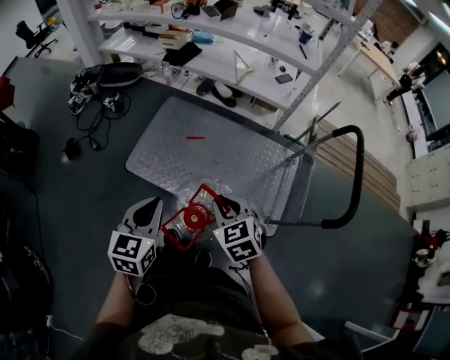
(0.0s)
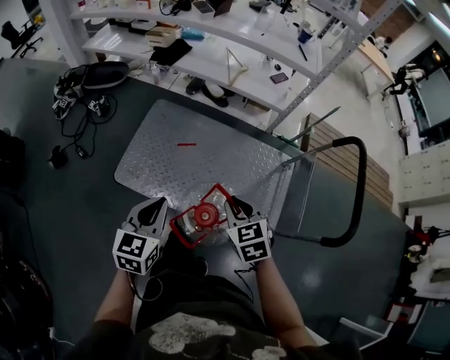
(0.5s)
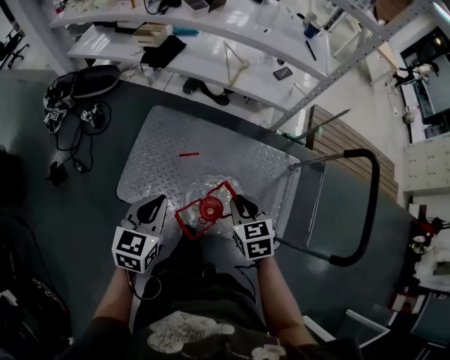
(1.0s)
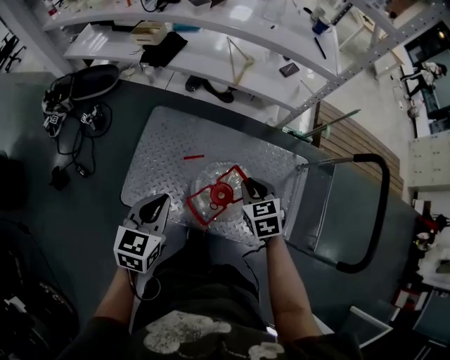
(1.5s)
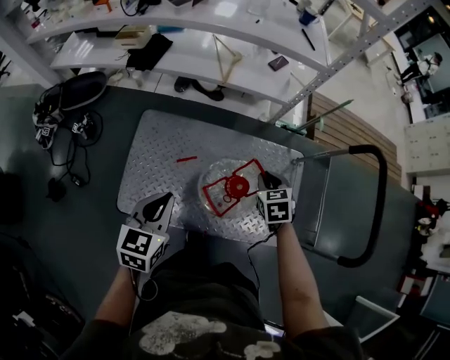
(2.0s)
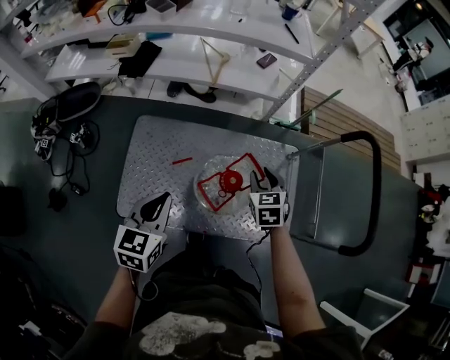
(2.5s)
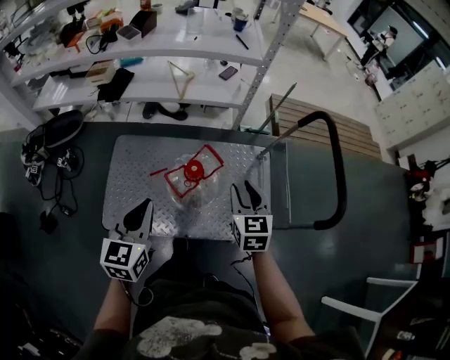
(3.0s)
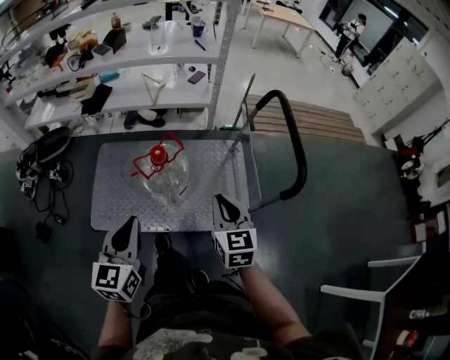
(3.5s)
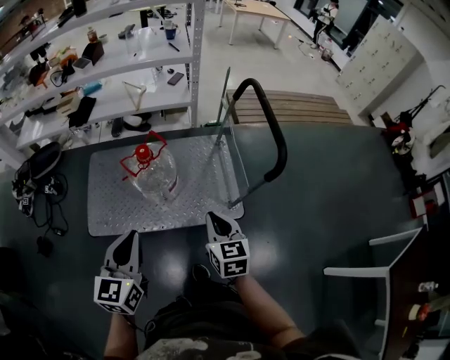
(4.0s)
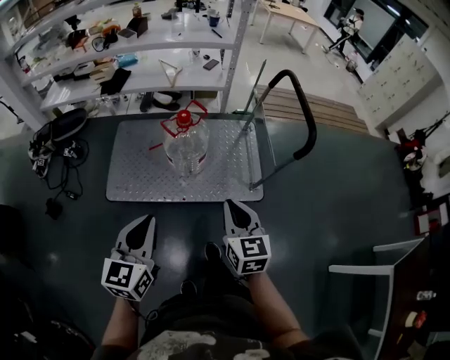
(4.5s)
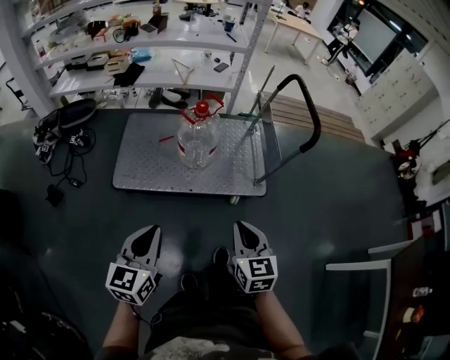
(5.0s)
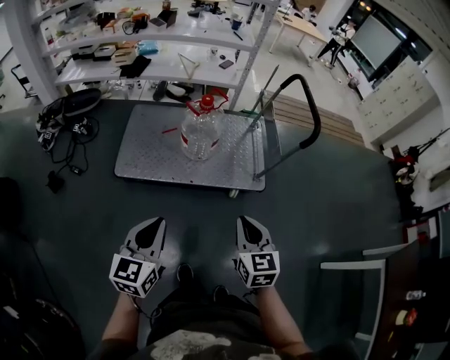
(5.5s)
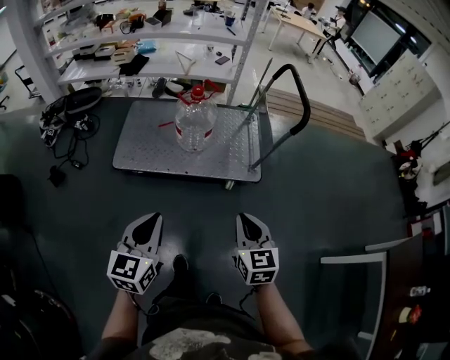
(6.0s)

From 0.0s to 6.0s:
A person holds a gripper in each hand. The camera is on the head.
From 0.0s to 2.0s: The left gripper shifts by approximately 35 cm; the right gripper ends up some 40 cm from where it was, and rotates some 30 degrees.
From 2.0s to 4.0s: The right gripper heads backward and to the right, covering some 40 cm, swivels approximately 30 degrees, and opens, then closes again, while the left gripper heads backward, to the right and upward, covering about 40 cm.
From 4.0s to 6.0s: Both grippers travel together backward, roughly 35 cm.

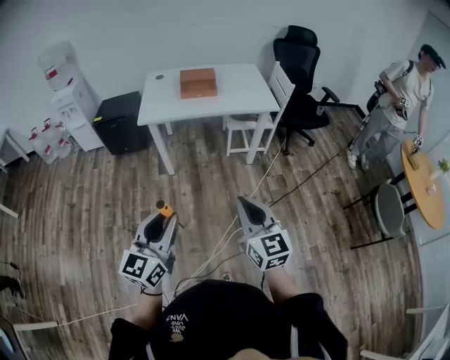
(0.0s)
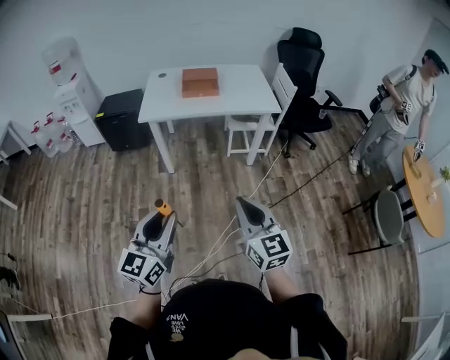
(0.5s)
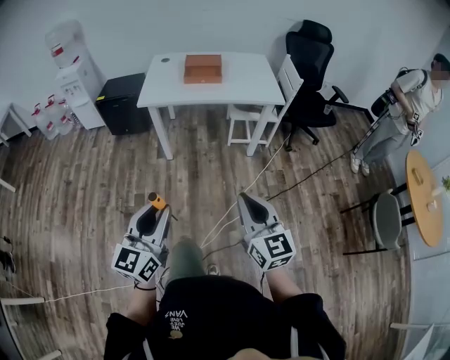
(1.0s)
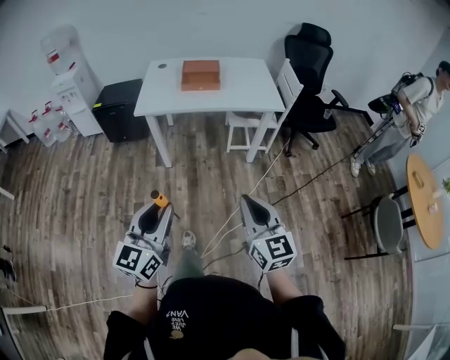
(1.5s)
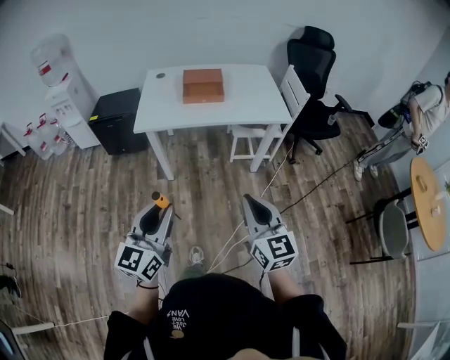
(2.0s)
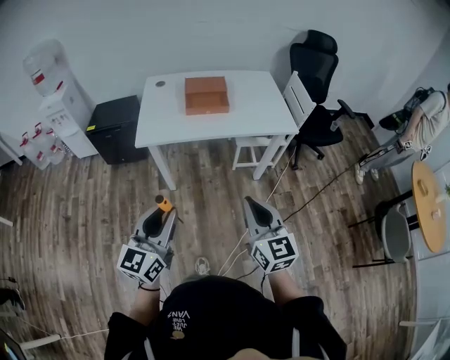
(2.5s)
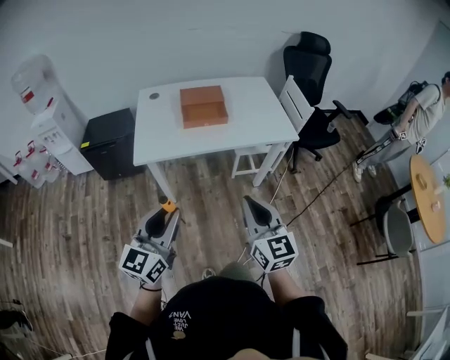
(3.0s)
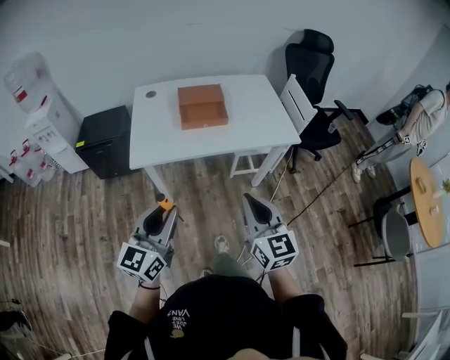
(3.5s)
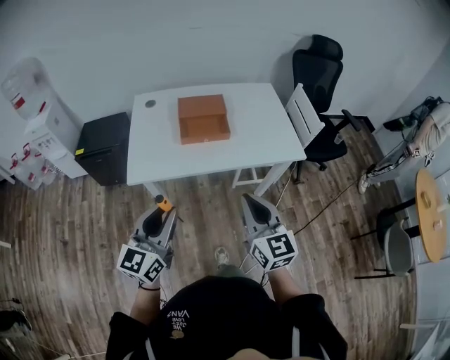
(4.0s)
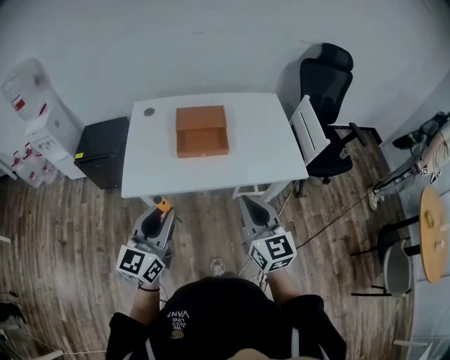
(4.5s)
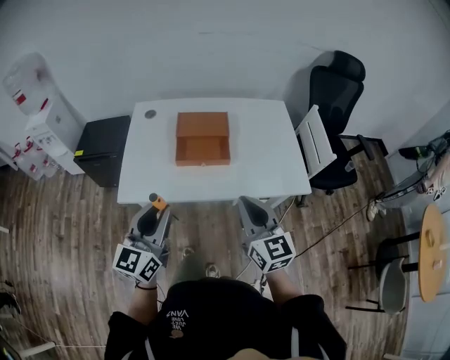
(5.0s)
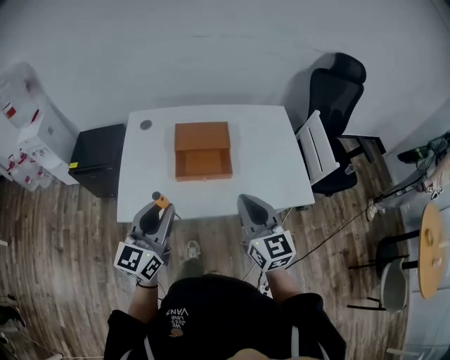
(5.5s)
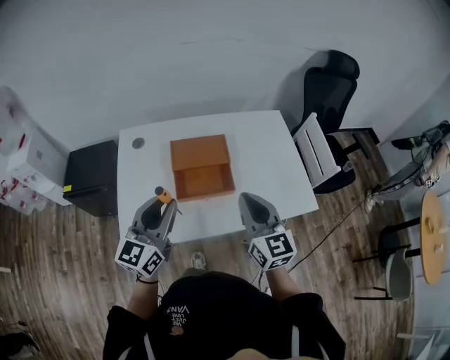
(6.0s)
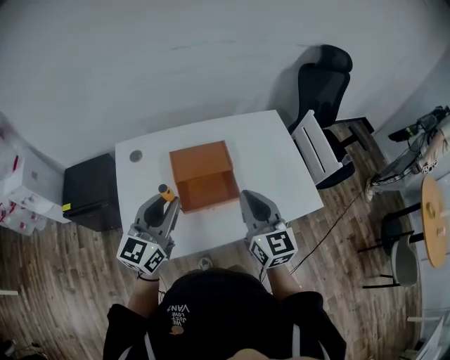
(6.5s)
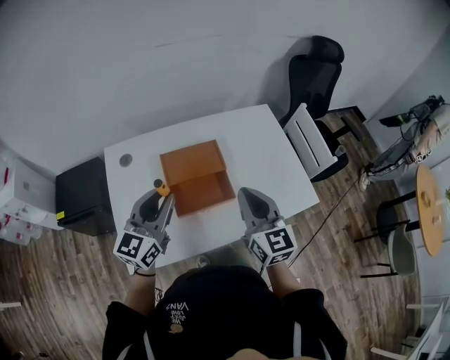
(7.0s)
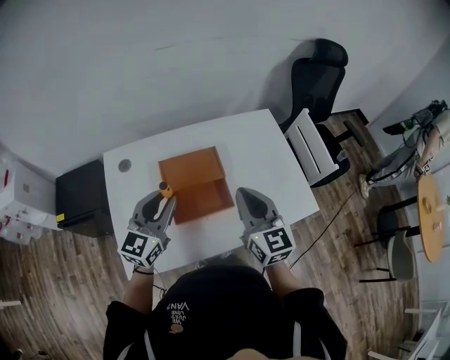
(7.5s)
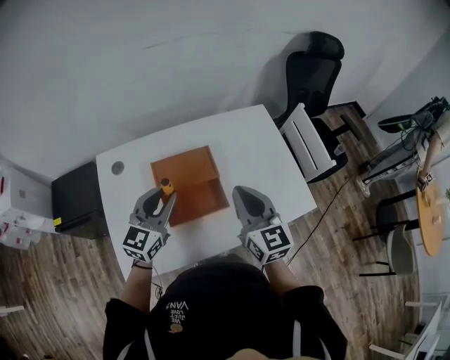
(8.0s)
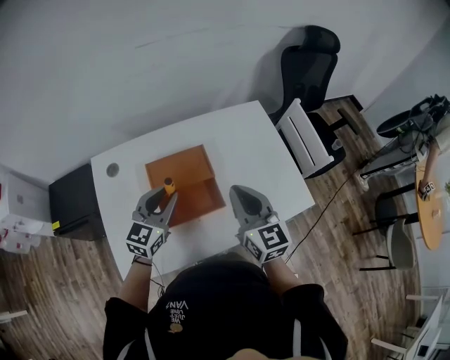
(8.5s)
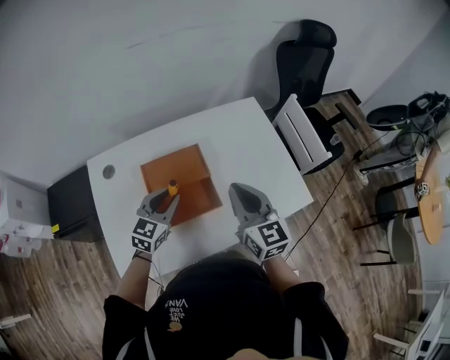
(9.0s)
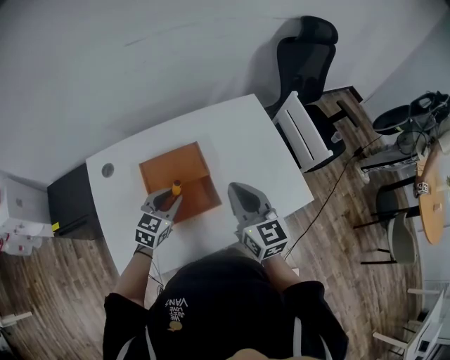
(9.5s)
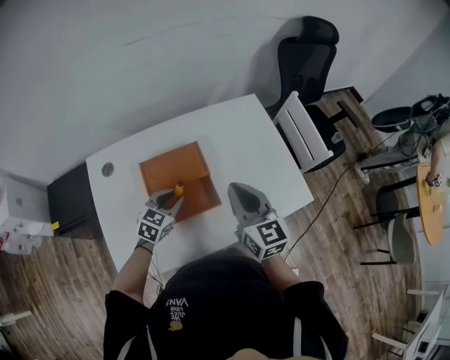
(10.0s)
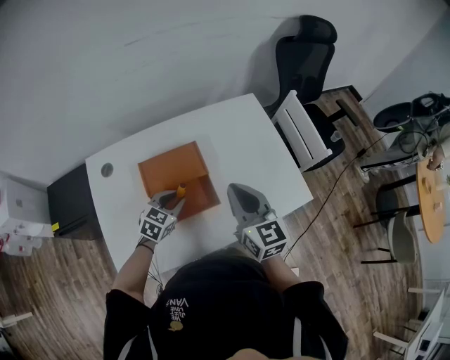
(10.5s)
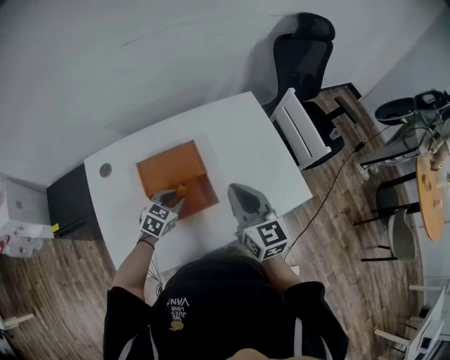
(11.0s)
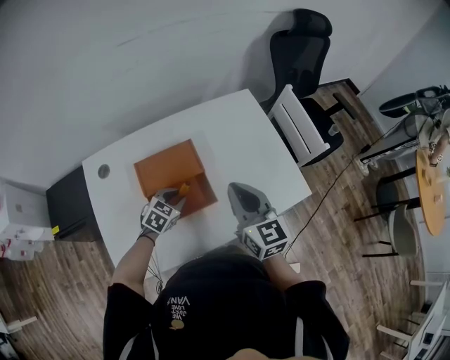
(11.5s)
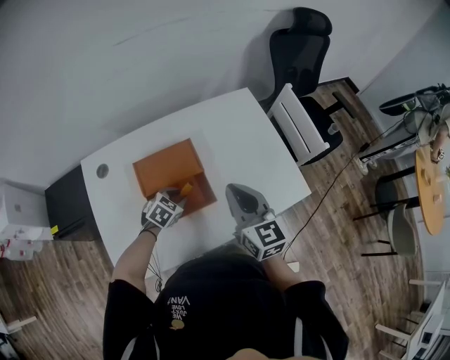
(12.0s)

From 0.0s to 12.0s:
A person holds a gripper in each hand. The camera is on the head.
From 0.0s to 2.0s: Both grippers move forward, about 15 cm.
From 2.0s to 4.0s: Both grippers move forward, about 30 cm.
From 4.0s to 6.0s: The two grippers go approximately 30 cm forward.
From 6.0s to 8.0s: Both grippers move forward, approximately 15 cm.
From 8.0s to 10.0s: The left gripper goes roughly 15 cm downward, and changes its angle by some 30 degrees.
From 10.0s to 12.0s: The left gripper moves downward, roughly 10 cm, and swivels about 20 degrees.

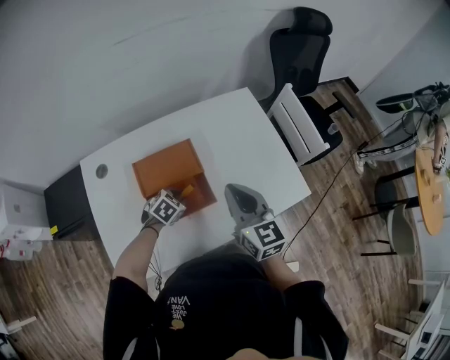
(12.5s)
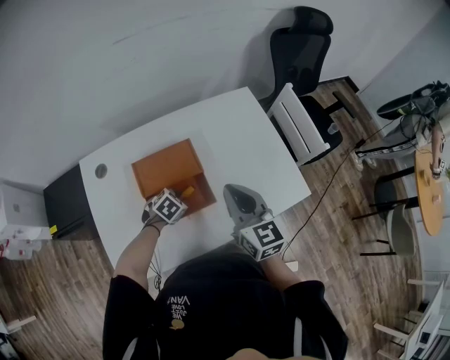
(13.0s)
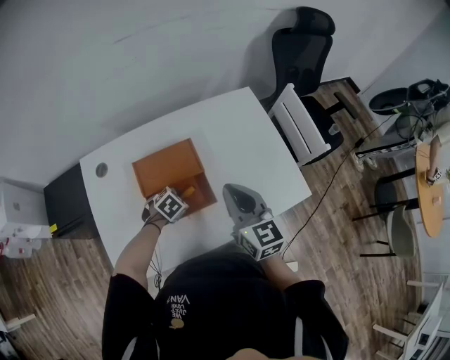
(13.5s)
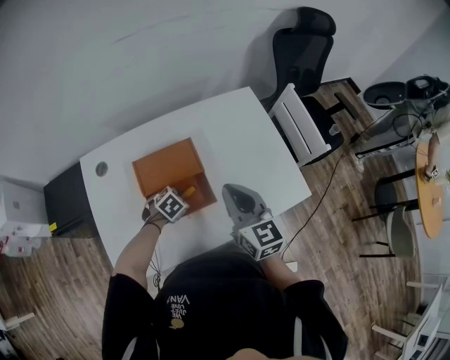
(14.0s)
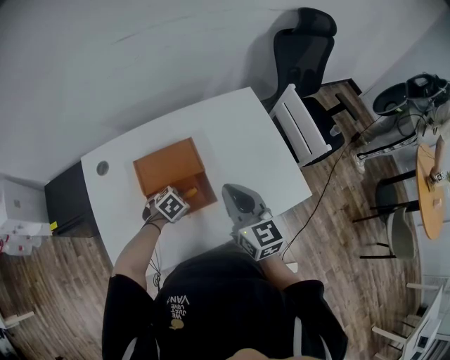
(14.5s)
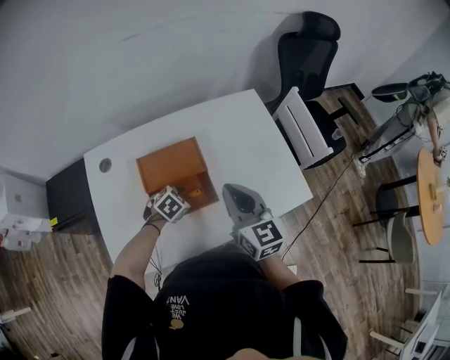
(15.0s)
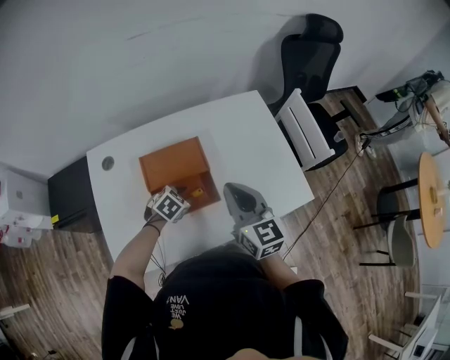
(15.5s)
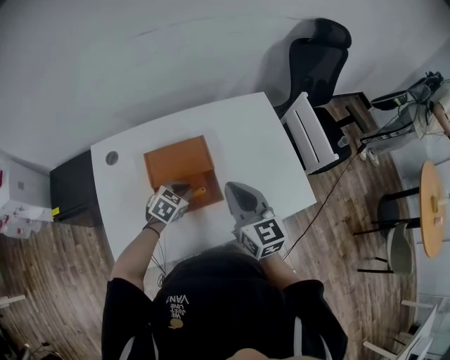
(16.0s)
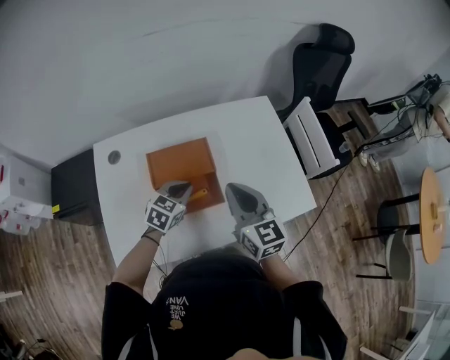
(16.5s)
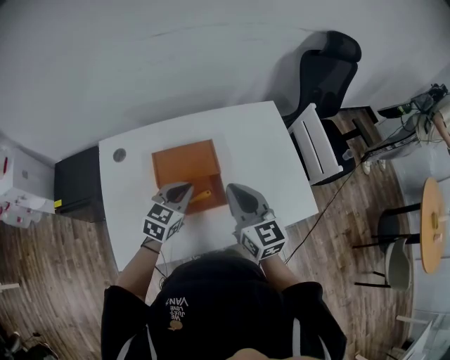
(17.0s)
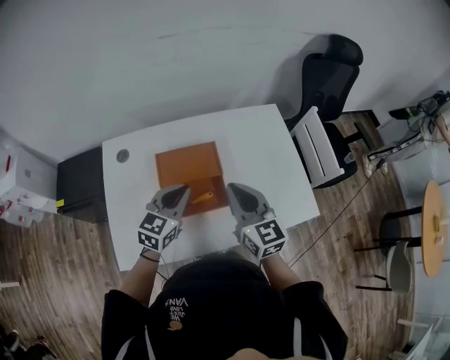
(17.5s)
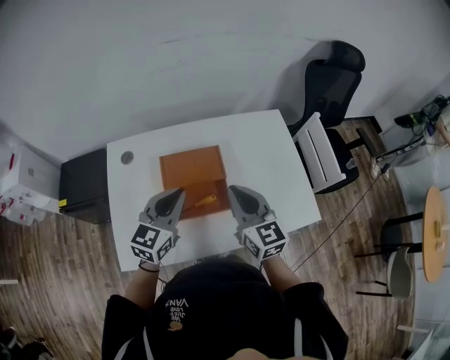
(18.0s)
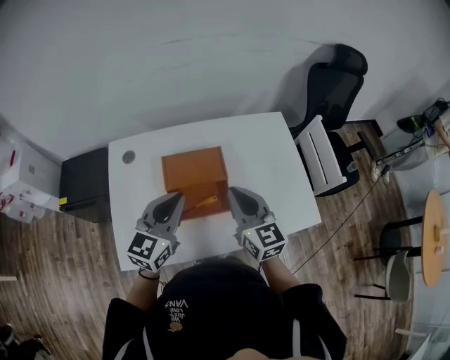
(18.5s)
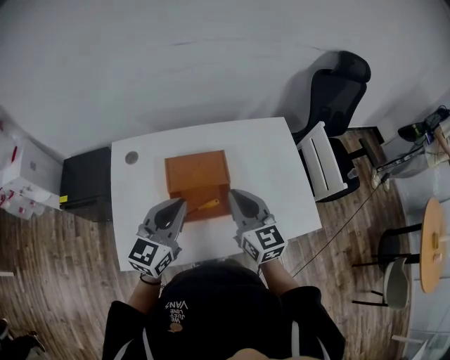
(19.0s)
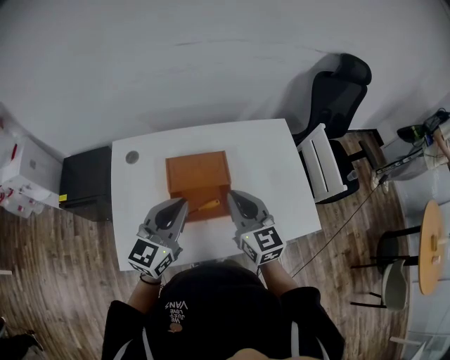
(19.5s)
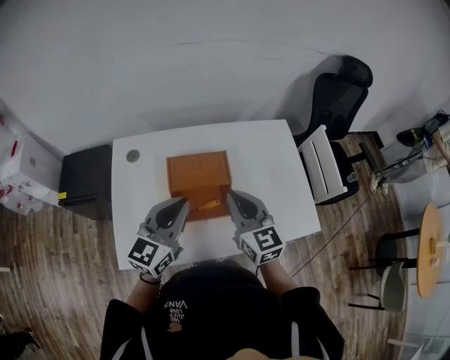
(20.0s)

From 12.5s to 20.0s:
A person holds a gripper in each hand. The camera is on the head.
From 12.5s to 14.5s: The grippers make only small movements.
From 14.5s to 16.5s: The left gripper goes some 10 cm upward, changes its angle by about 30 degrees, and closes.
From 16.5s to 18.0s: The left gripper moves upward, roughly 15 cm, and turns by approximately 30 degrees.
From 18.0s to 20.0s: The grippers move only a little.

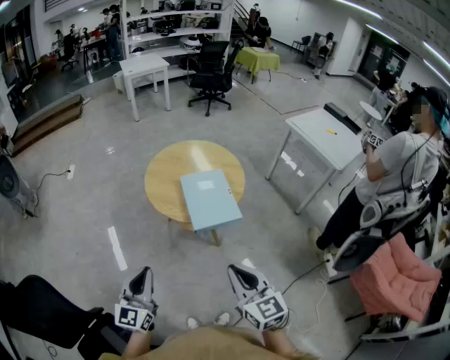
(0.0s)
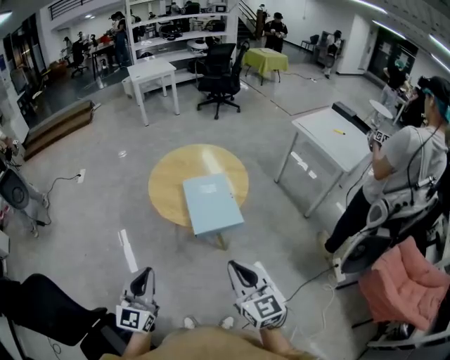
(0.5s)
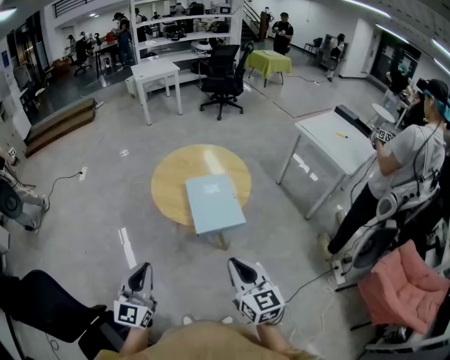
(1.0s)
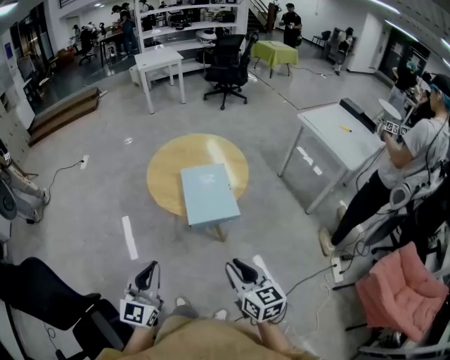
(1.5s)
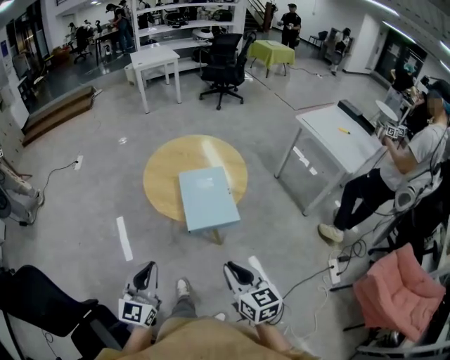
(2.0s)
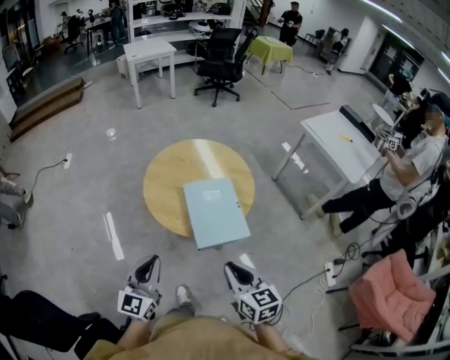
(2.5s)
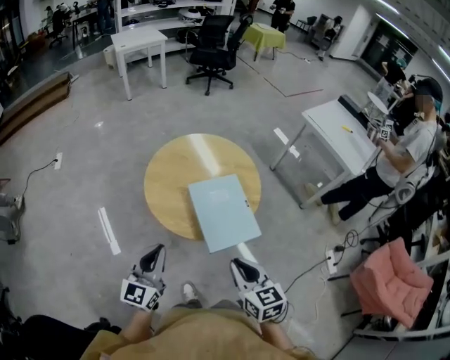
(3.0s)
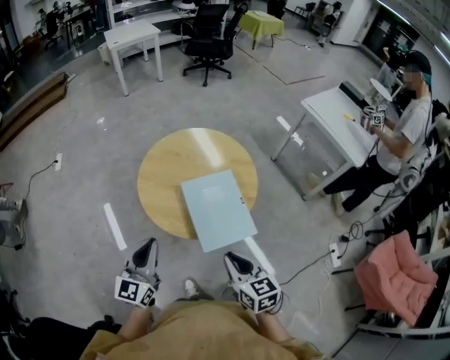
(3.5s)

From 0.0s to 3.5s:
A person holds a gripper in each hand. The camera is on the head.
From 0.0s to 2.0s: The left gripper shifts some 10 cm to the right. Meanwhile the right gripper heads to the right and downward, covering some 10 cm.
From 2.0s to 3.5s: Both grippers move forward, approximately 30 cm.
